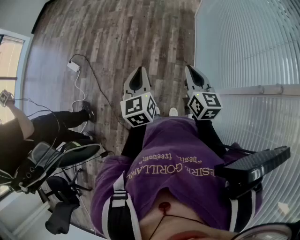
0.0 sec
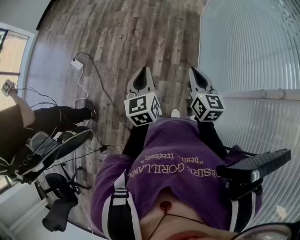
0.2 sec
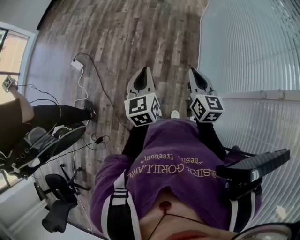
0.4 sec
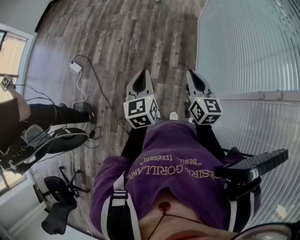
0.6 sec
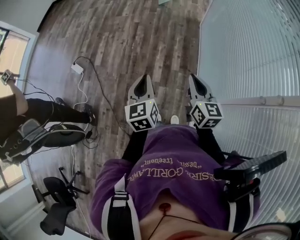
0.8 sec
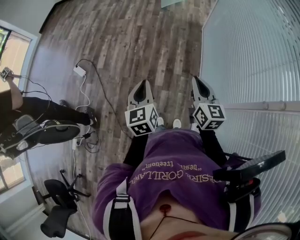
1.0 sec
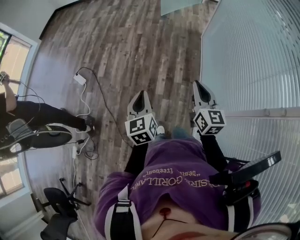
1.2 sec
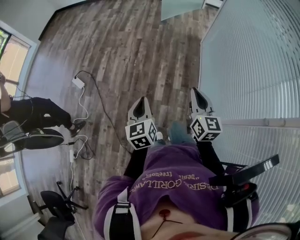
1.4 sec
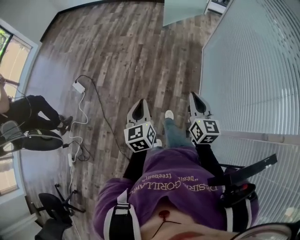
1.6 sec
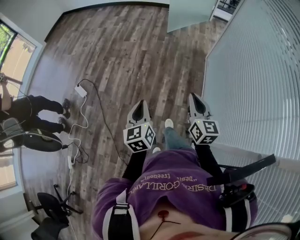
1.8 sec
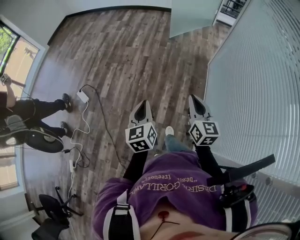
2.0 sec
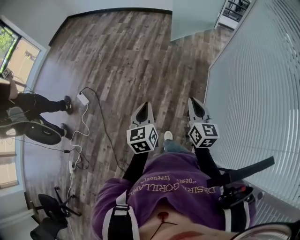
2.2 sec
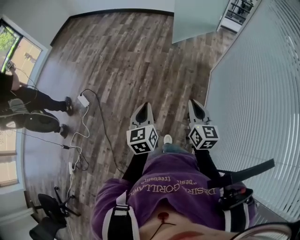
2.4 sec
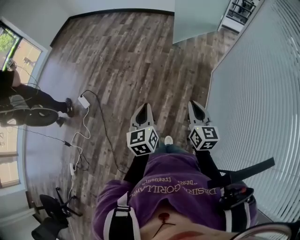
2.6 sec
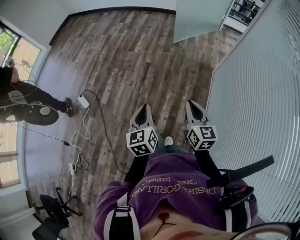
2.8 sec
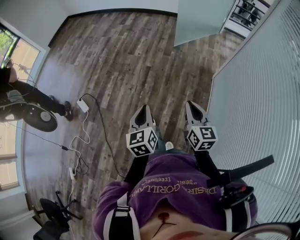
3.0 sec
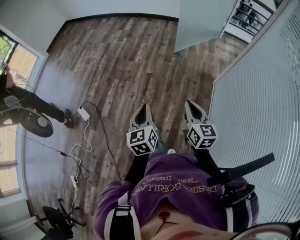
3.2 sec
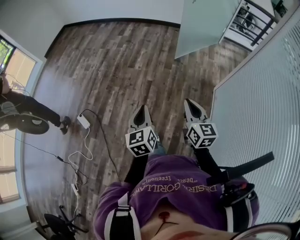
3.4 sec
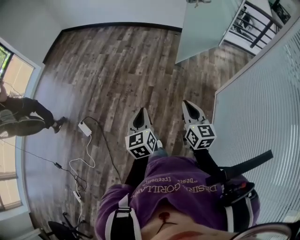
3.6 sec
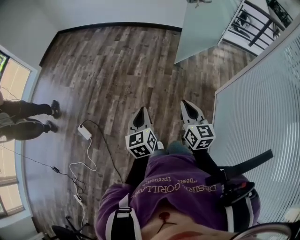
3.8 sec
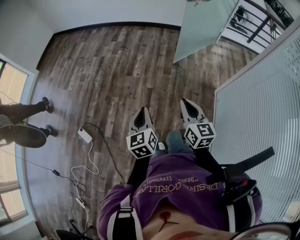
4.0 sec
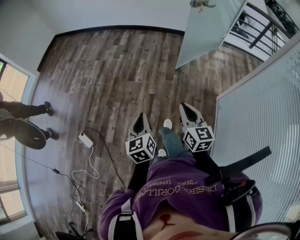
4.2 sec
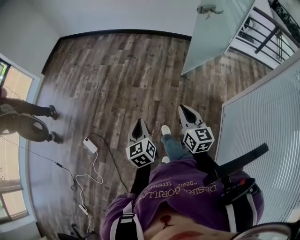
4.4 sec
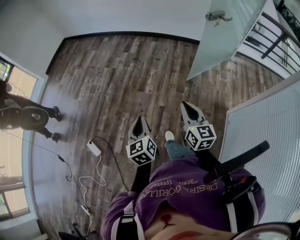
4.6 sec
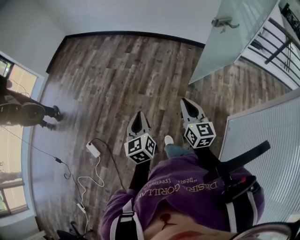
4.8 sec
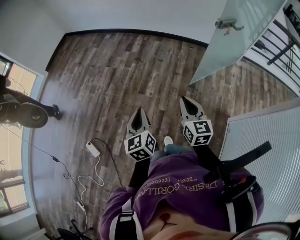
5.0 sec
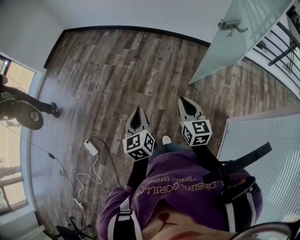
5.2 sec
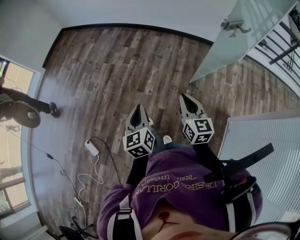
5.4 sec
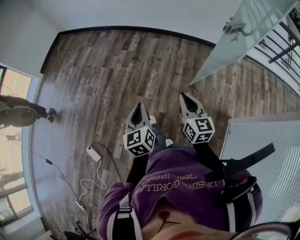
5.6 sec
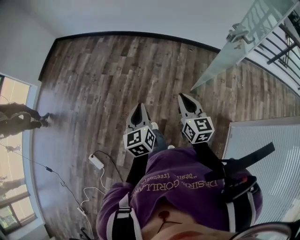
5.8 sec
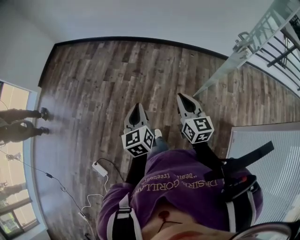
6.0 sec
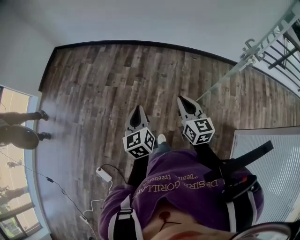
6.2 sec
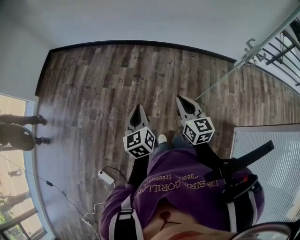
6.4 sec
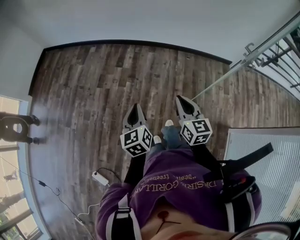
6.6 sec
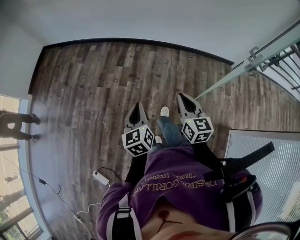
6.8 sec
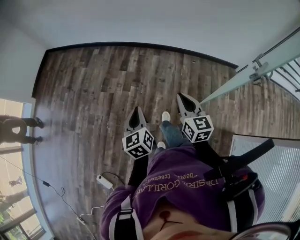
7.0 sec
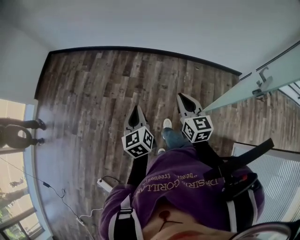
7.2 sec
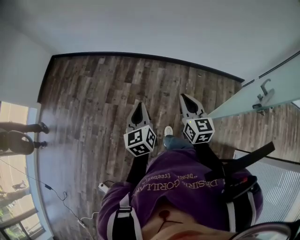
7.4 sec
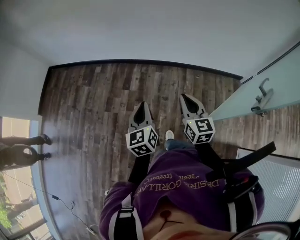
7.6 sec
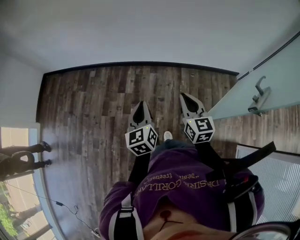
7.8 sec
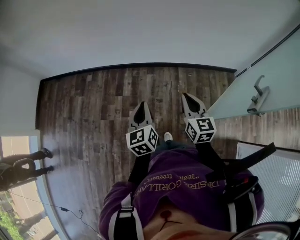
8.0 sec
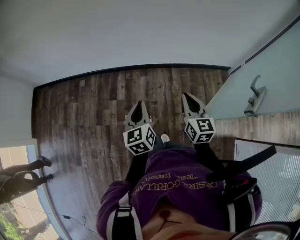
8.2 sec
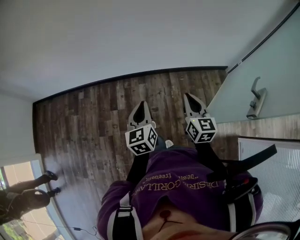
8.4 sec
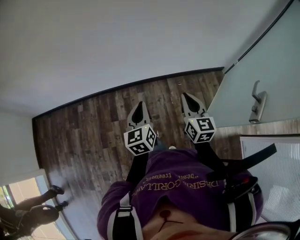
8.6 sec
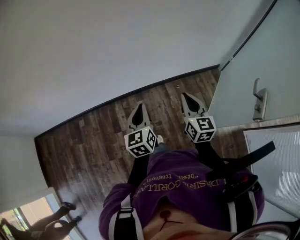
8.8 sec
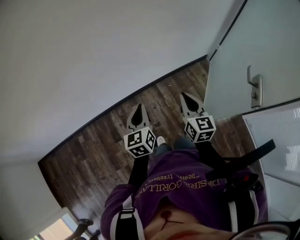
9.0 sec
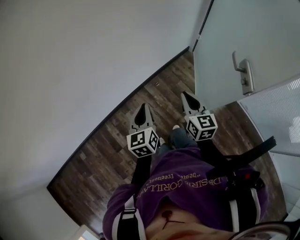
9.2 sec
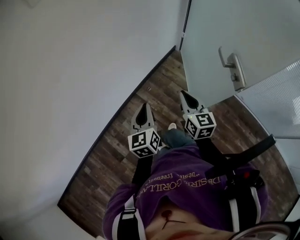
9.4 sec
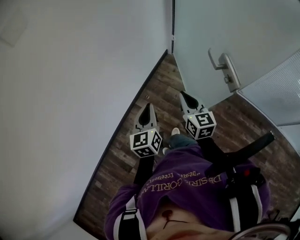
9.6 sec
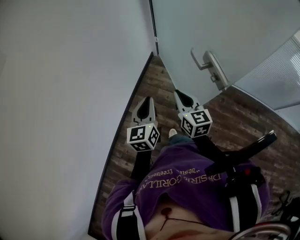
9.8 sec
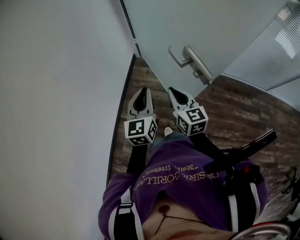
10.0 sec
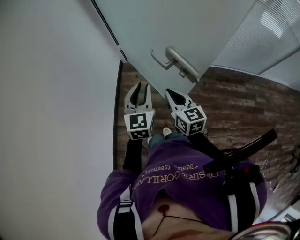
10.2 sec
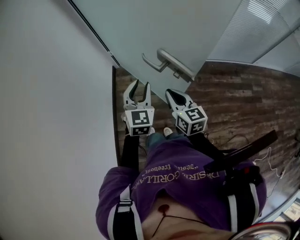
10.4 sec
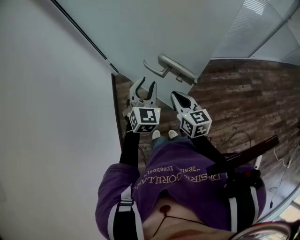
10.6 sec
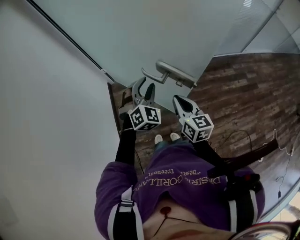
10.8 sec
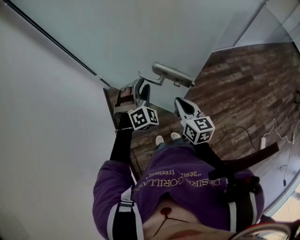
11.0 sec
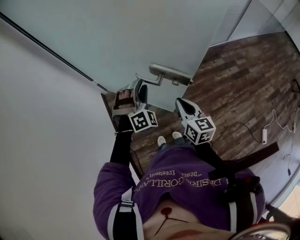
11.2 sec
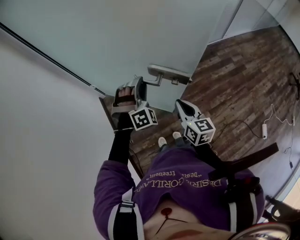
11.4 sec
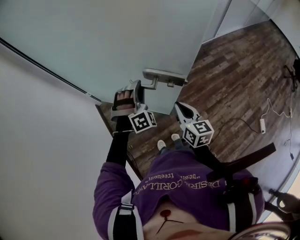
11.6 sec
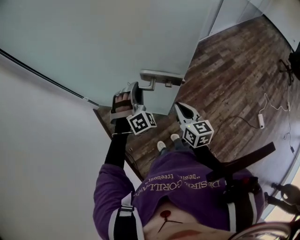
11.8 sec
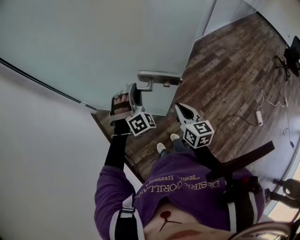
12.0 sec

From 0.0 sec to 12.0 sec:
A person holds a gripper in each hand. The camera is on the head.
From 0.0 sec to 1.6 sec: The left gripper shifts approximately 10 cm to the left and forward; the right gripper moves forward and to the left, roughly 10 cm.
From 1.6 sec to 3.0 sec: Both grippers move forward, approximately 30 cm.
From 3.0 sec to 4.4 sec: The grippers both shift forward by approximately 35 cm.
From 4.4 sec to 6.0 sec: The two grippers travel together, forward, some 40 cm.
From 6.0 sec to 7.6 sec: The grippers both shift forward by some 35 cm.
From 7.6 sec to 9.0 sec: The right gripper changes place by roughly 25 cm, and turns by roughly 40 degrees. Meanwhile the left gripper ends up some 35 cm from where it was, and turns by approximately 40 degrees.
From 9.0 sec to 10.4 sec: The left gripper ends up some 50 cm from where it was, rotates about 90 degrees, and opens up. The right gripper moves roughly 30 cm, and changes its angle by approximately 60 degrees.
From 10.4 sec to 12.0 sec: The right gripper changes its angle by some 40 degrees. The left gripper ends up some 10 cm from where it was, and rotates around the line of its fingers by some 60 degrees, clockwise from behind.

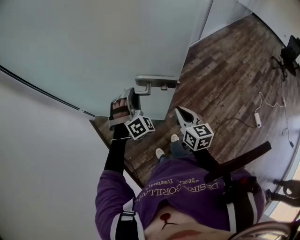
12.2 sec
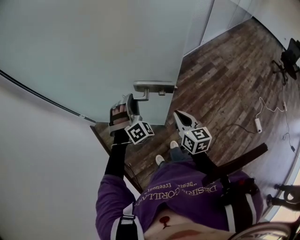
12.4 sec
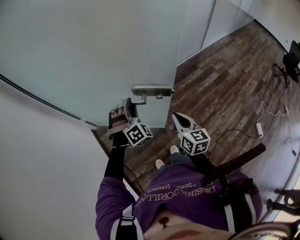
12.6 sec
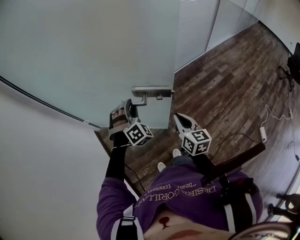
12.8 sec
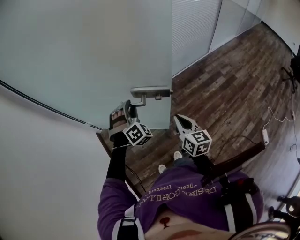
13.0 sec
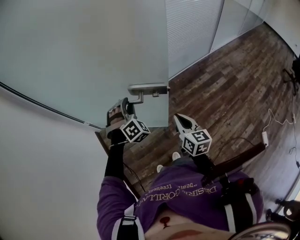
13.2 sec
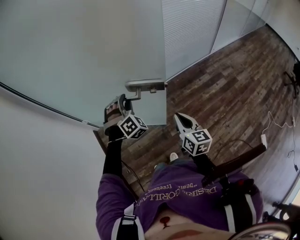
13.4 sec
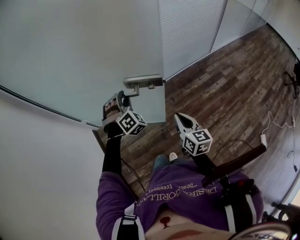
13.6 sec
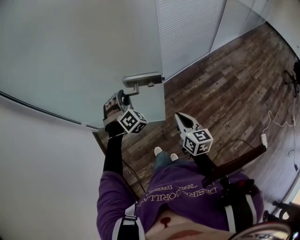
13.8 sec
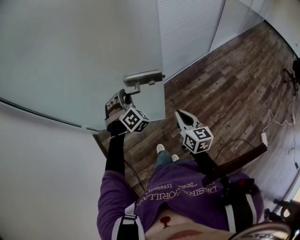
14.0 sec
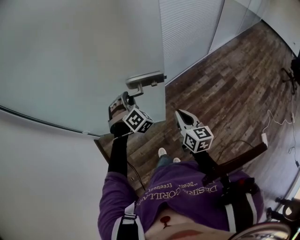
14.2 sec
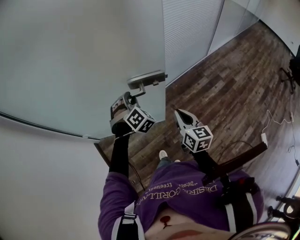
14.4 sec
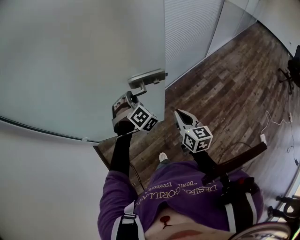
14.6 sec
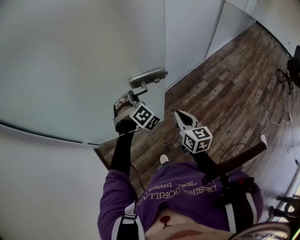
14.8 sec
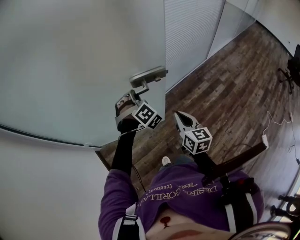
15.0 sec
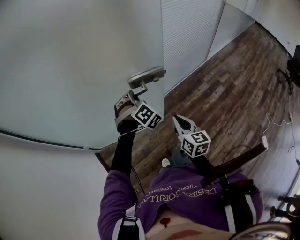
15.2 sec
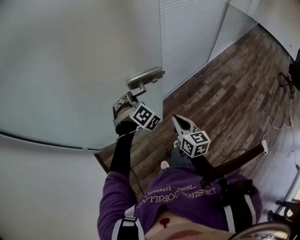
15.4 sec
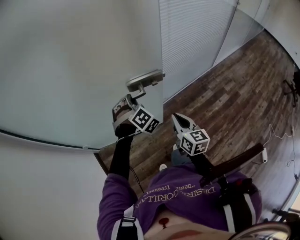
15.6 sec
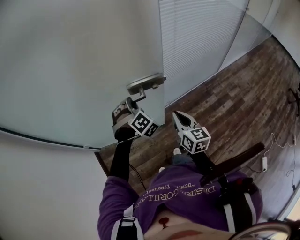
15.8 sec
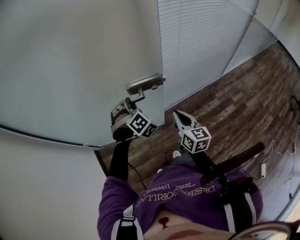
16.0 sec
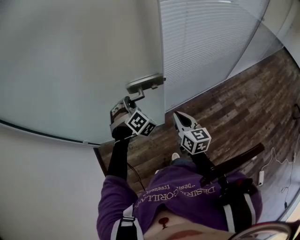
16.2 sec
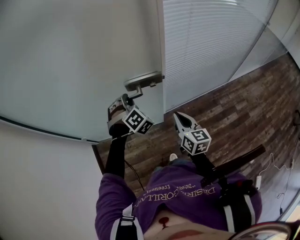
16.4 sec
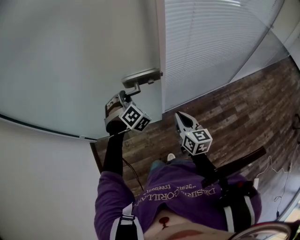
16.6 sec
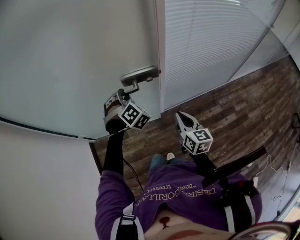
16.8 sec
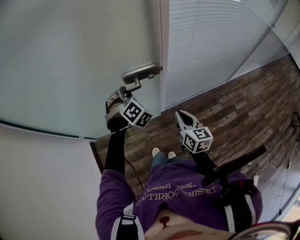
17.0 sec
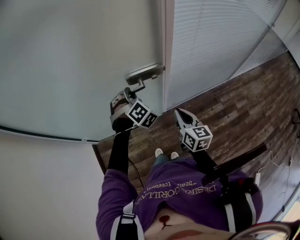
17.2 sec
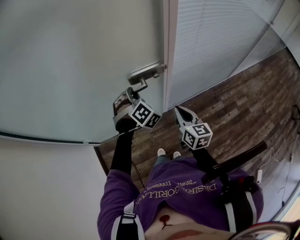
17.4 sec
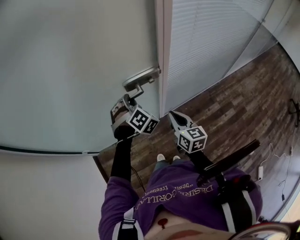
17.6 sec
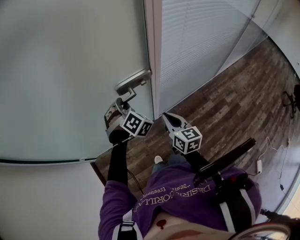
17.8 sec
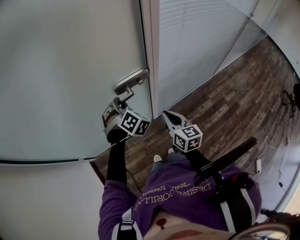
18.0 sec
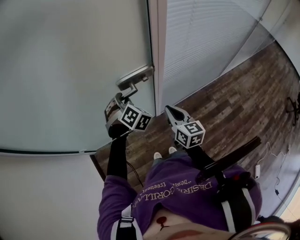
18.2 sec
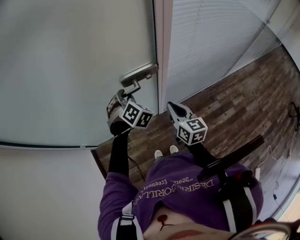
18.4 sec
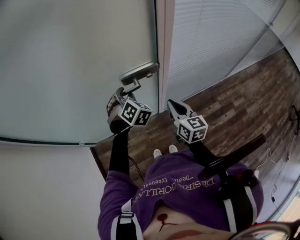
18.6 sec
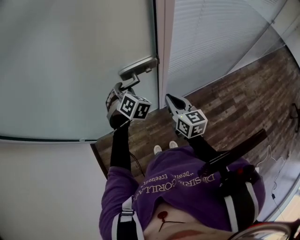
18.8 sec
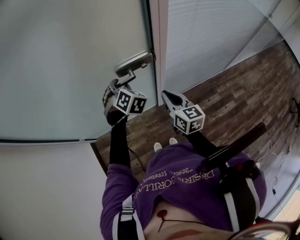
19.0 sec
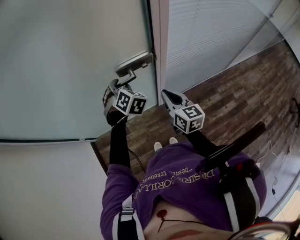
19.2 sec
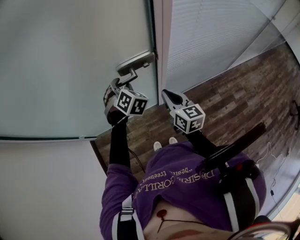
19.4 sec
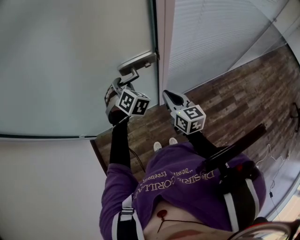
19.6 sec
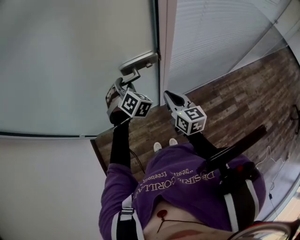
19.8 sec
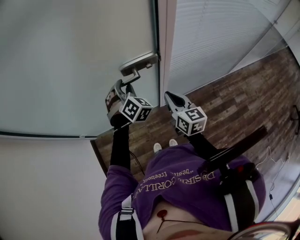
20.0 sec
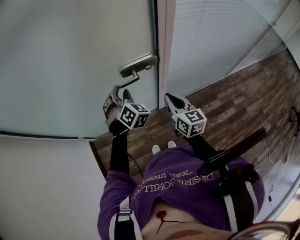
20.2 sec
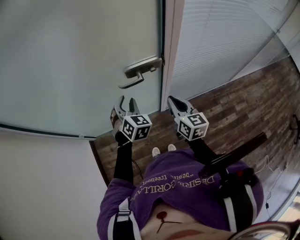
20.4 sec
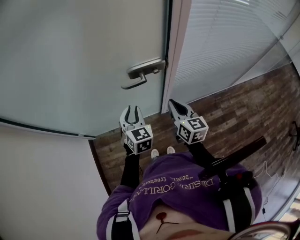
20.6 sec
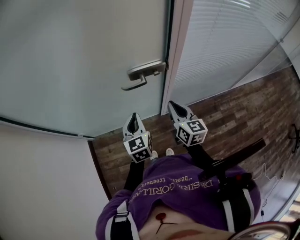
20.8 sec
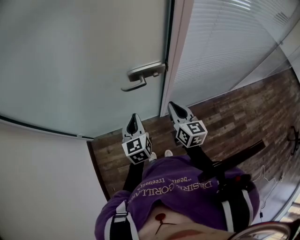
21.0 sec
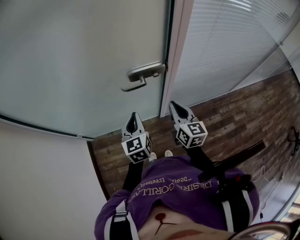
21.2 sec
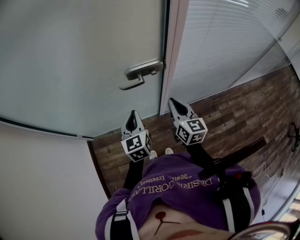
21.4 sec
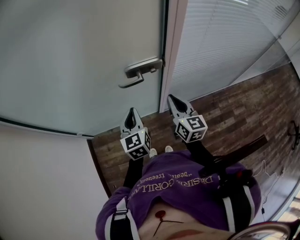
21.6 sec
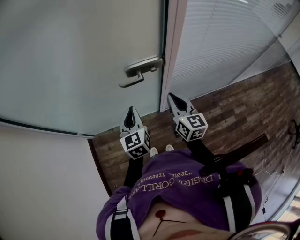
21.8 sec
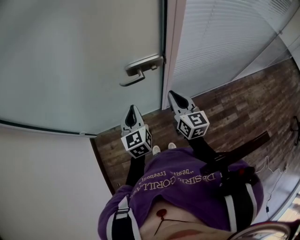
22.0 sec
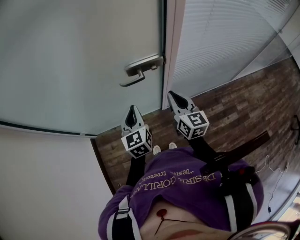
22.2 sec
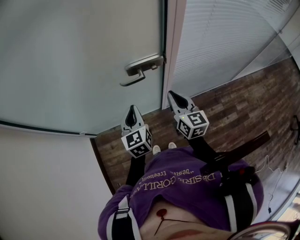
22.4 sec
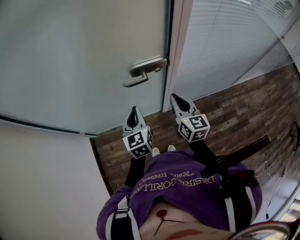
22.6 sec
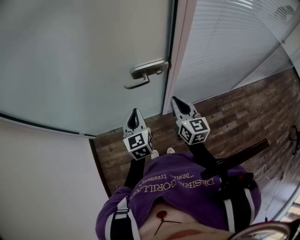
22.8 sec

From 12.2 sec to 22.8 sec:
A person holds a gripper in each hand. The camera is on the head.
From 12.2 sec to 13.8 sec: The grippers both shift forward and to the right by about 20 cm.
From 13.8 sec to 15.2 sec: The two grippers go roughly 15 cm forward.
From 15.2 sec to 16.8 sec: The right gripper shifts about 20 cm forward and to the right. The left gripper is displaced forward by about 15 cm.
From 16.8 sec to 18.2 sec: The left gripper is displaced forward by about 5 cm. The right gripper travels forward by some 10 cm.
From 18.2 sec to 19.8 sec: The grippers move only a little.
From 19.8 sec to 21.2 sec: The left gripper is displaced backward by about 10 cm, rotates around the line of its fingers by roughly 60 degrees, counterclockwise from behind, and closes.
From 21.2 sec to 22.8 sec: There are only small adjustments of the grippers.

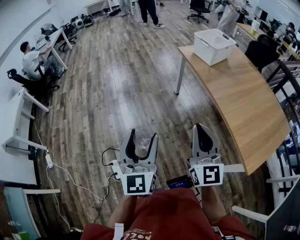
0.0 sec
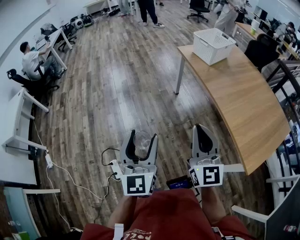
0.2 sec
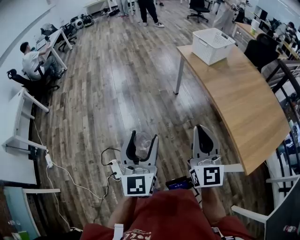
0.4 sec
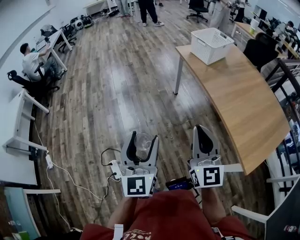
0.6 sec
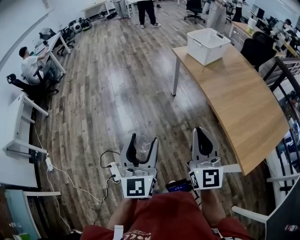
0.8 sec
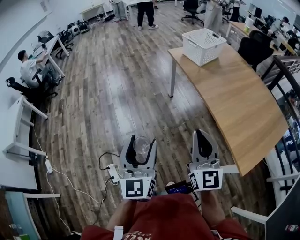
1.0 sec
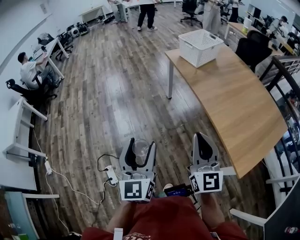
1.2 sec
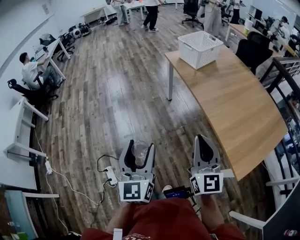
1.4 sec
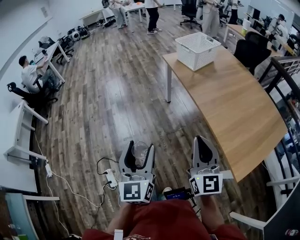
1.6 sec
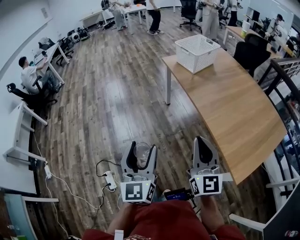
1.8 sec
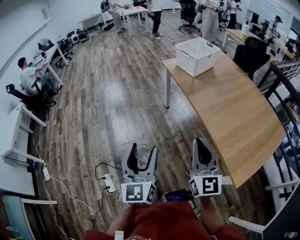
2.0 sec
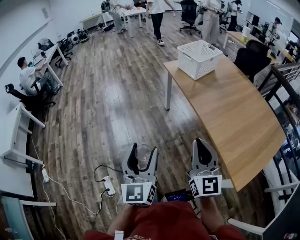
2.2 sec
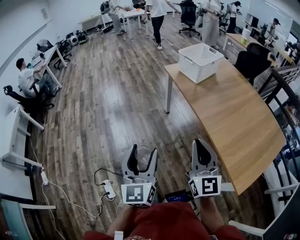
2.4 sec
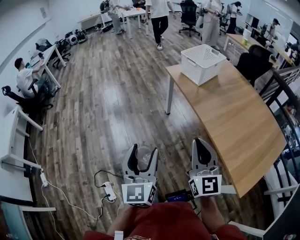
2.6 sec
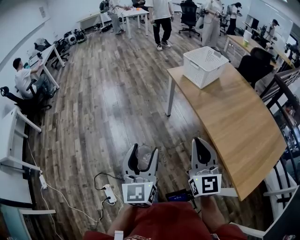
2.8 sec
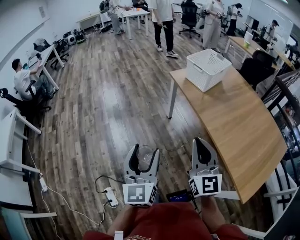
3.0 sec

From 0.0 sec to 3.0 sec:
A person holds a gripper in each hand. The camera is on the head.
From 0.0 sec to 1.6 sec: The grippers both shift to the right by roughly 10 cm.
From 1.6 sec to 3.0 sec: Both grippers move forward and to the left, roughly 15 cm.
